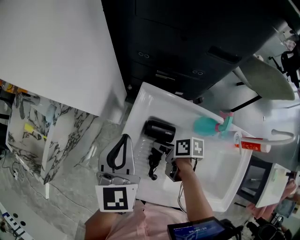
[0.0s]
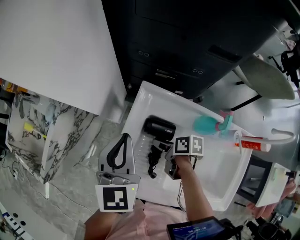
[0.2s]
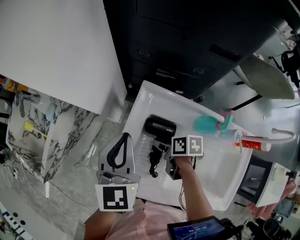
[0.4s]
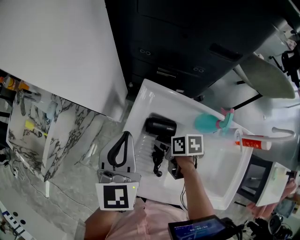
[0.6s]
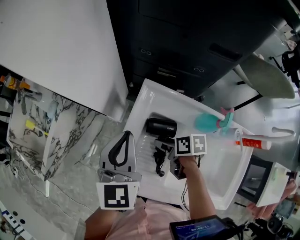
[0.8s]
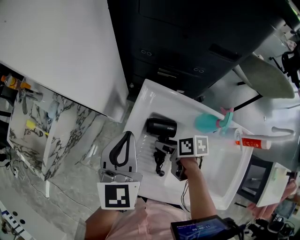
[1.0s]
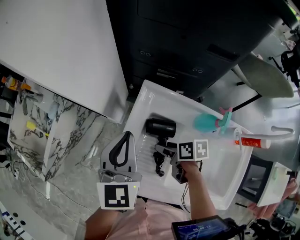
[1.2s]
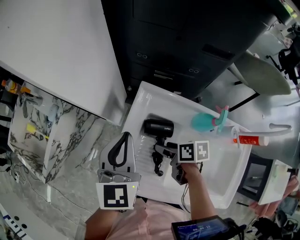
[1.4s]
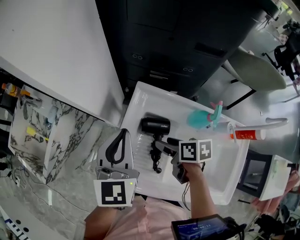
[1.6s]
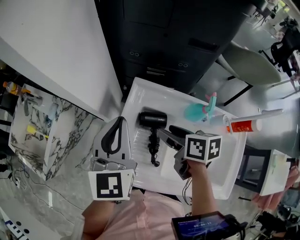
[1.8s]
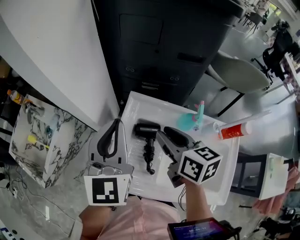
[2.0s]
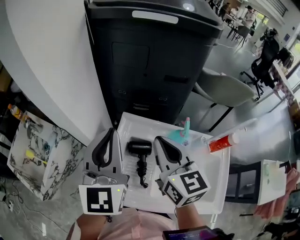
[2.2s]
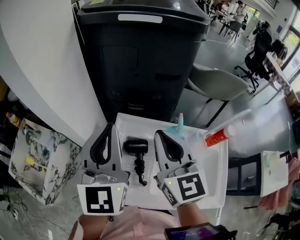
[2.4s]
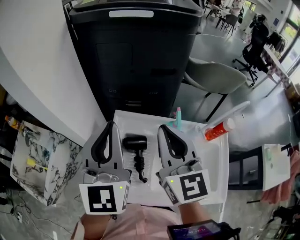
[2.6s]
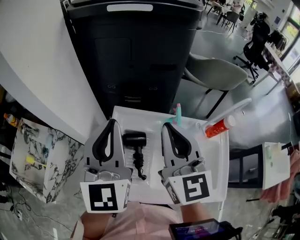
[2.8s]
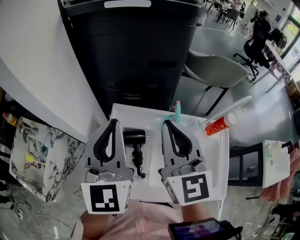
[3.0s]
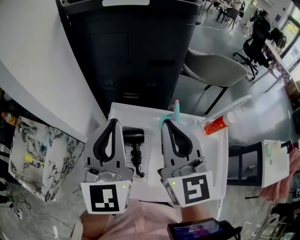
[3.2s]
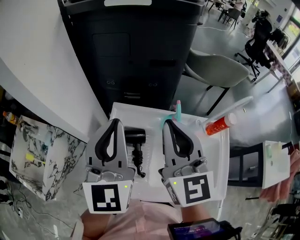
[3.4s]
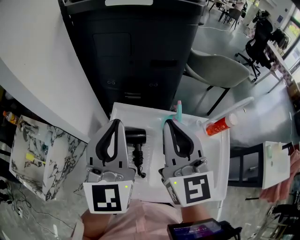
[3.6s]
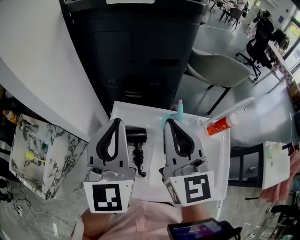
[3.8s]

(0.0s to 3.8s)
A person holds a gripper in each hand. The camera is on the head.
0.0s - 1.2s: The grippers make only small movements.
1.2s - 2.6s: The right gripper goes roughly 35 cm upward, tilts its fingers about 50 degrees upward, and closes. The left gripper travels upward by about 20 cm, and rotates approximately 30 degrees.
2.6s - 3.8s: The grippers move only a little.

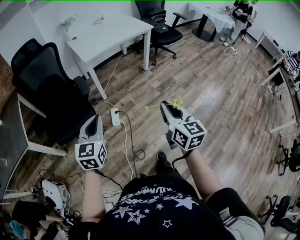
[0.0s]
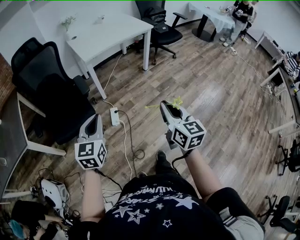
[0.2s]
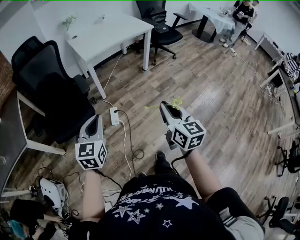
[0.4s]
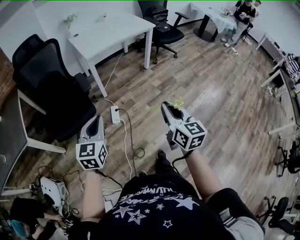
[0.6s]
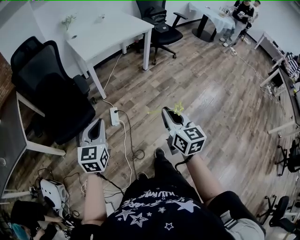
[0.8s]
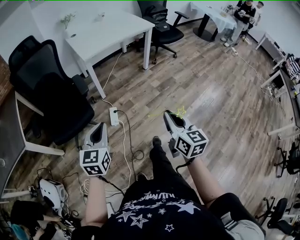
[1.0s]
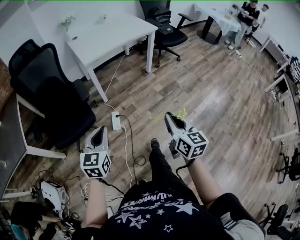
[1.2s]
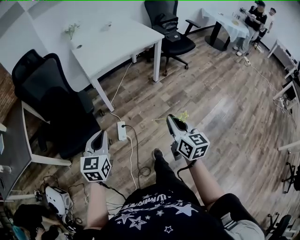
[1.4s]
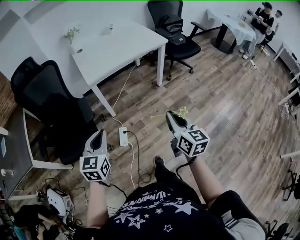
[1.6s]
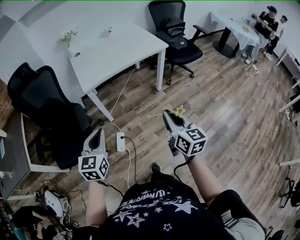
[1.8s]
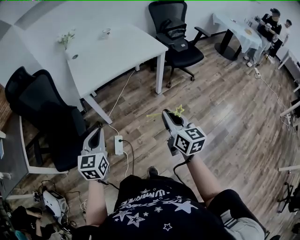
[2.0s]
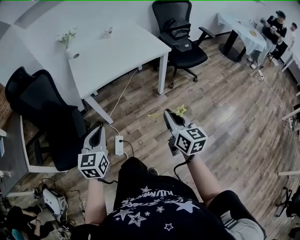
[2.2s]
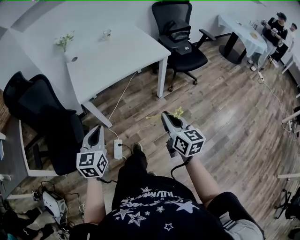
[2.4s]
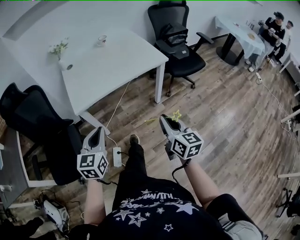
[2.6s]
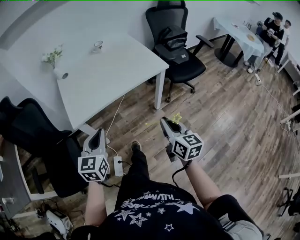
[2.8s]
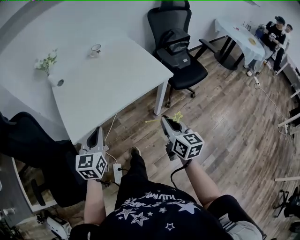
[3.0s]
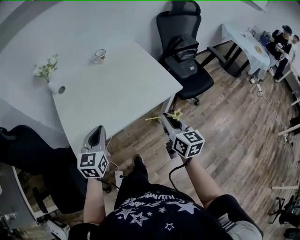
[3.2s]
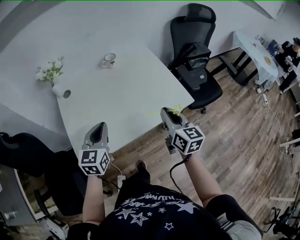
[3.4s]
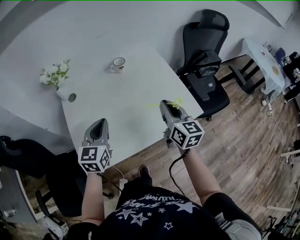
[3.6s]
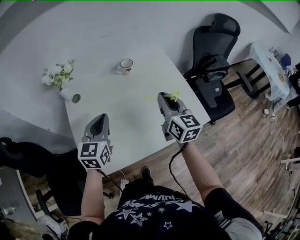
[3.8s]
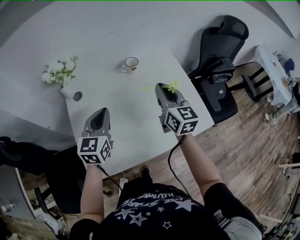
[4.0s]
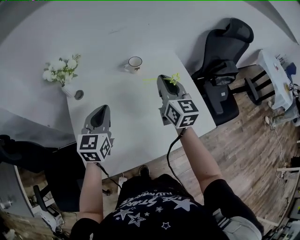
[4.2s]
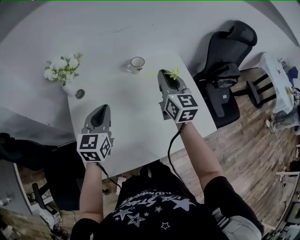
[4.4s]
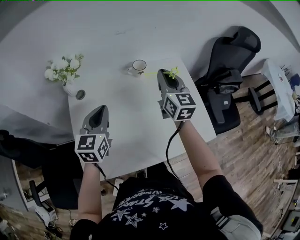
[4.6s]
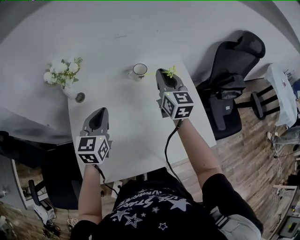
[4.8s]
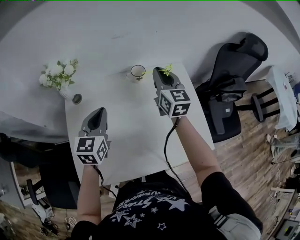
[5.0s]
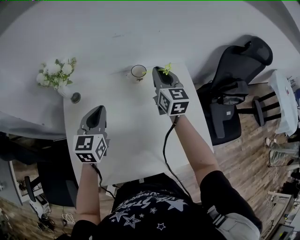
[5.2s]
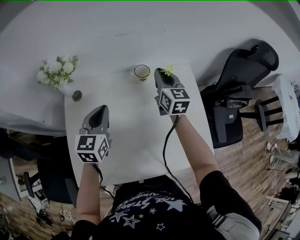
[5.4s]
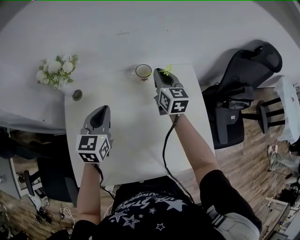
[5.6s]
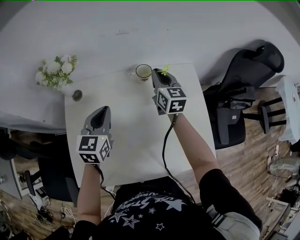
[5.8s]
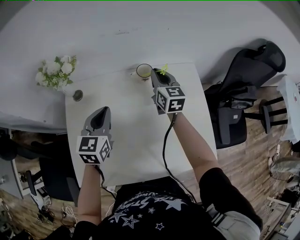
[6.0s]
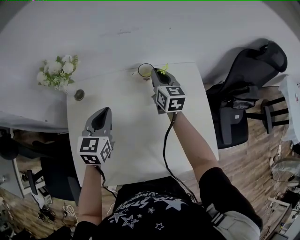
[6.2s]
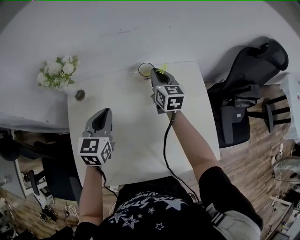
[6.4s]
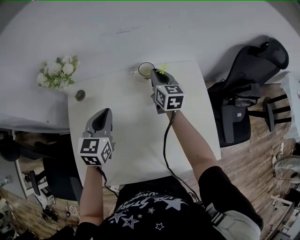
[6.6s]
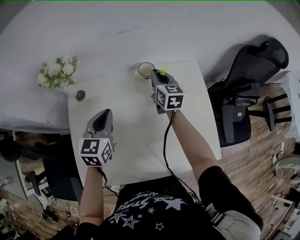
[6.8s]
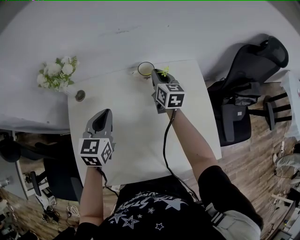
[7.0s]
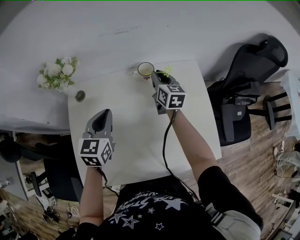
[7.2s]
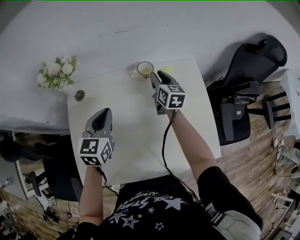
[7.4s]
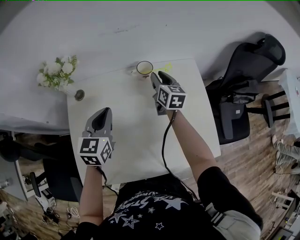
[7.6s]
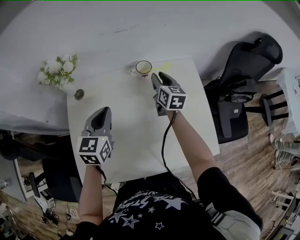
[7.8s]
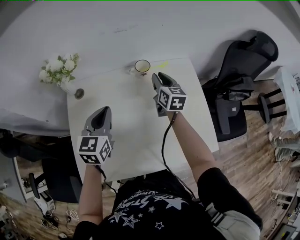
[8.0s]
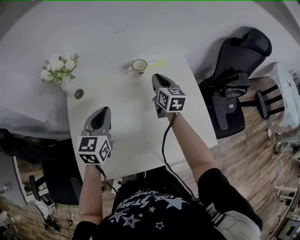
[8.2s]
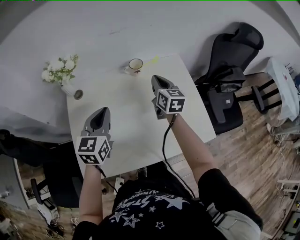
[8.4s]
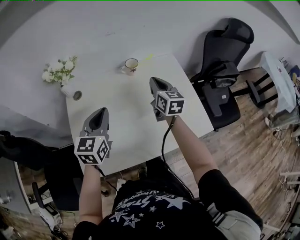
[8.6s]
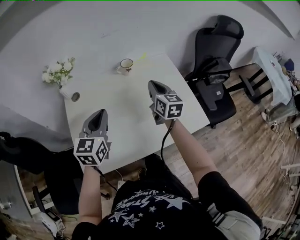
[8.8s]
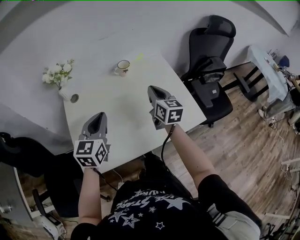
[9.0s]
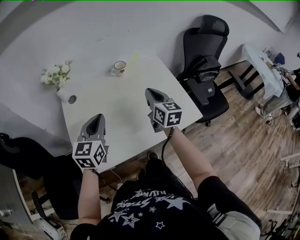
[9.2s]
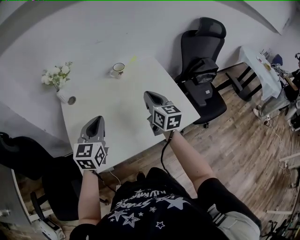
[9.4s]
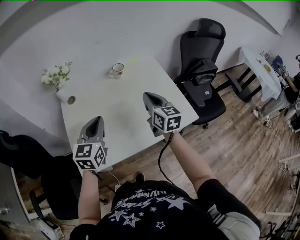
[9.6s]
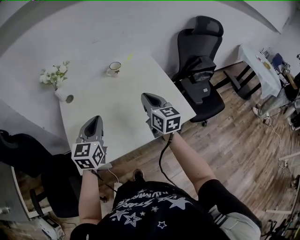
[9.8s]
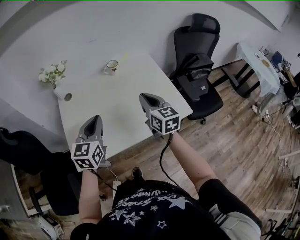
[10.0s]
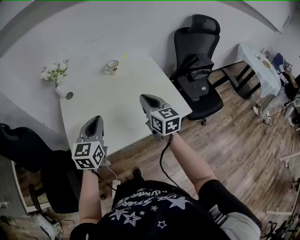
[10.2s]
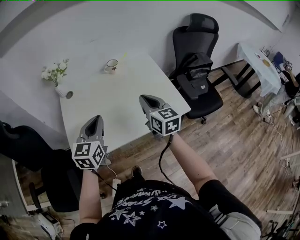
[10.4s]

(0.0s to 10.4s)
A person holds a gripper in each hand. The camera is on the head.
0.0s - 1.4s: The right gripper travels forward, to the right and downward by approximately 15 cm. Meanwhile the left gripper moves forward, roughly 10 cm.
1.4s - 3.0s: The pair of grippers is taken forward, about 50 cm.
3.0s - 4.4s: The two grippers go some 50 cm forward. The right gripper turns by roughly 20 degrees.
4.4s - 6.0s: The right gripper is displaced forward and downward by approximately 20 cm, while the left gripper goes roughly 10 cm forward.
6.0s - 7.4s: The right gripper opens up.
7.4s - 9.0s: The right gripper heads backward, covering roughly 25 cm, and closes its fingers, while the left gripper is displaced backward by approximately 15 cm.
9.0s - 10.4s: Both grippers travel together backward, roughly 10 cm.

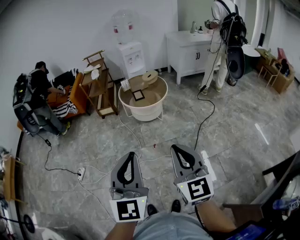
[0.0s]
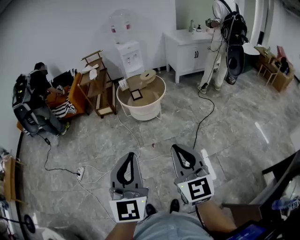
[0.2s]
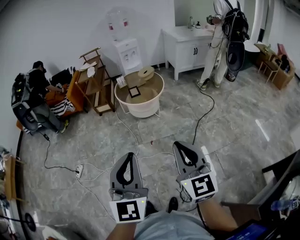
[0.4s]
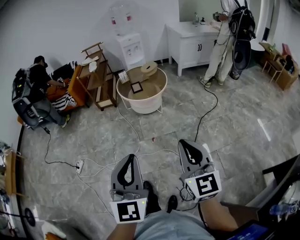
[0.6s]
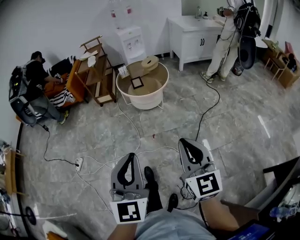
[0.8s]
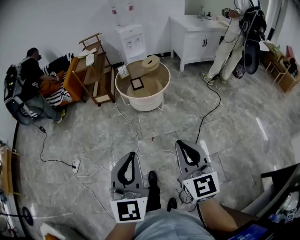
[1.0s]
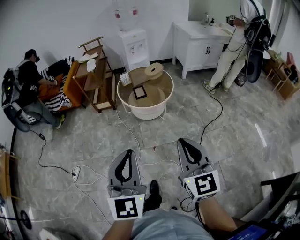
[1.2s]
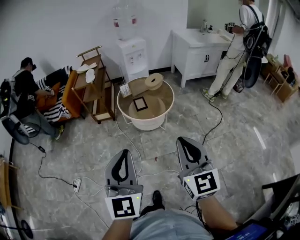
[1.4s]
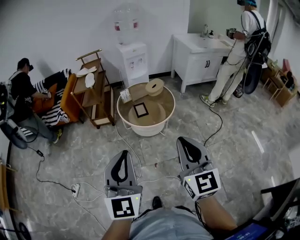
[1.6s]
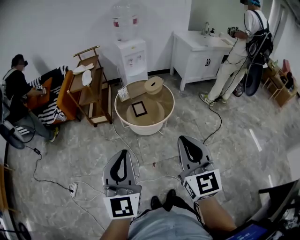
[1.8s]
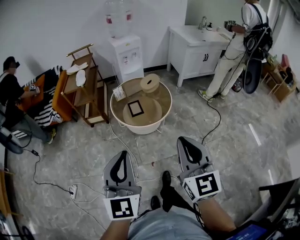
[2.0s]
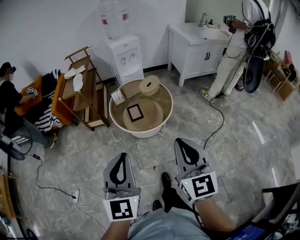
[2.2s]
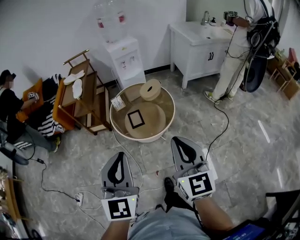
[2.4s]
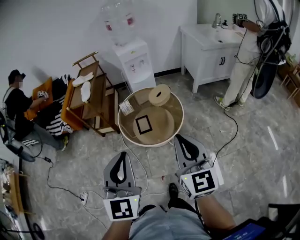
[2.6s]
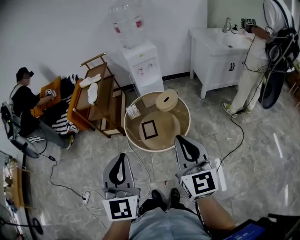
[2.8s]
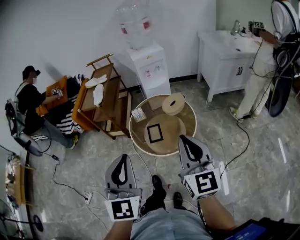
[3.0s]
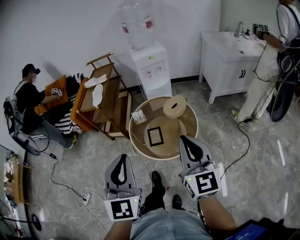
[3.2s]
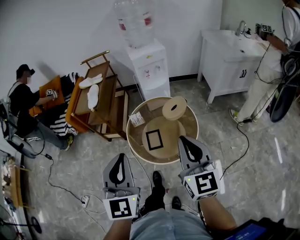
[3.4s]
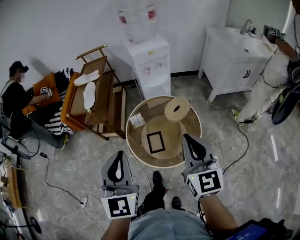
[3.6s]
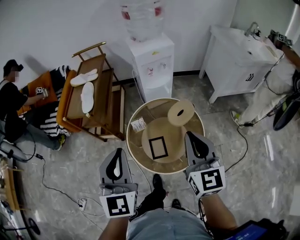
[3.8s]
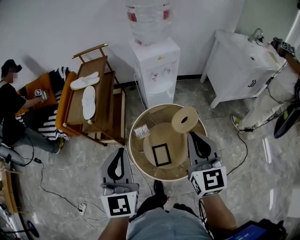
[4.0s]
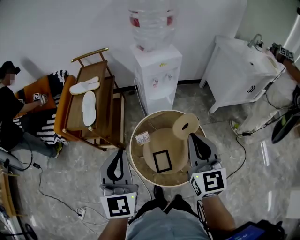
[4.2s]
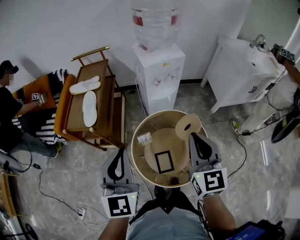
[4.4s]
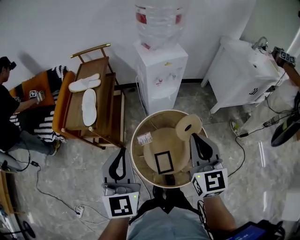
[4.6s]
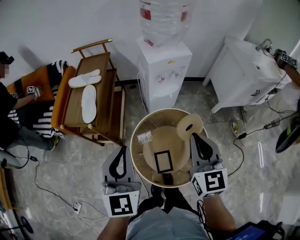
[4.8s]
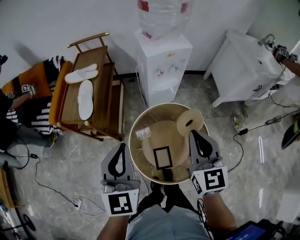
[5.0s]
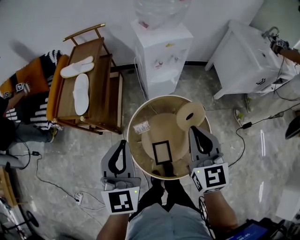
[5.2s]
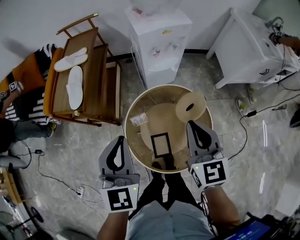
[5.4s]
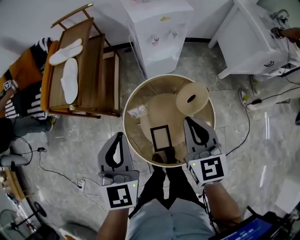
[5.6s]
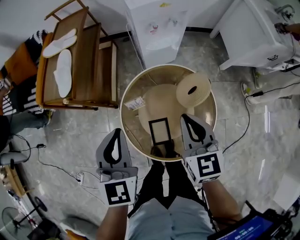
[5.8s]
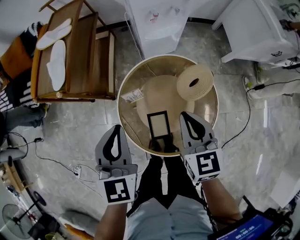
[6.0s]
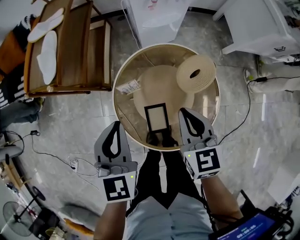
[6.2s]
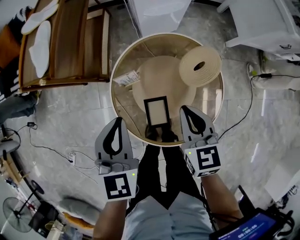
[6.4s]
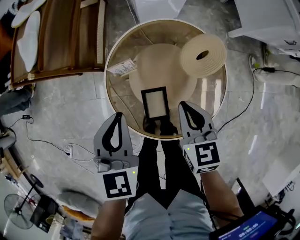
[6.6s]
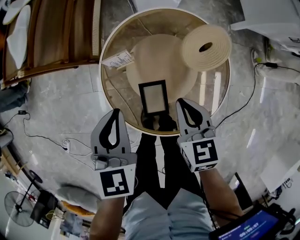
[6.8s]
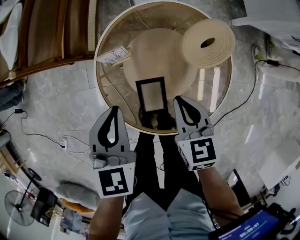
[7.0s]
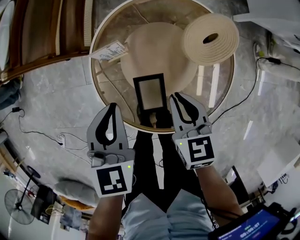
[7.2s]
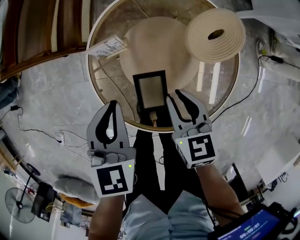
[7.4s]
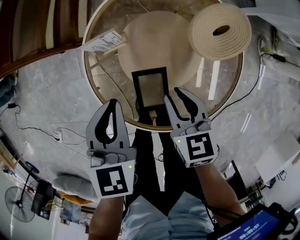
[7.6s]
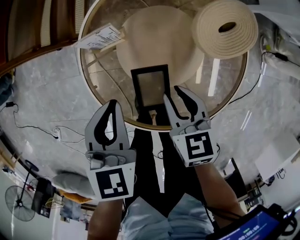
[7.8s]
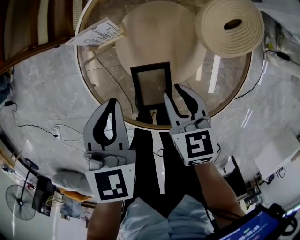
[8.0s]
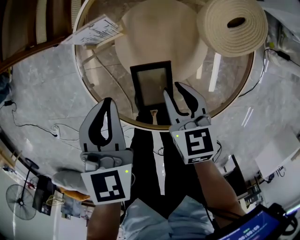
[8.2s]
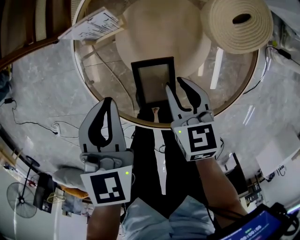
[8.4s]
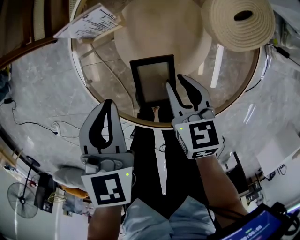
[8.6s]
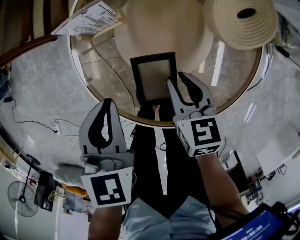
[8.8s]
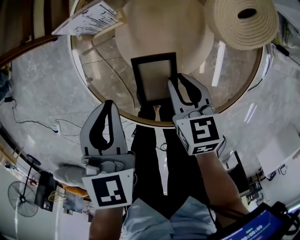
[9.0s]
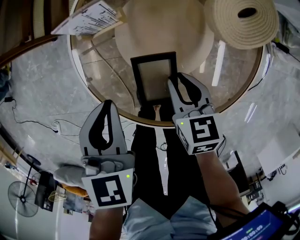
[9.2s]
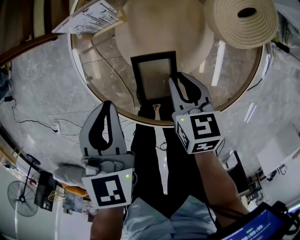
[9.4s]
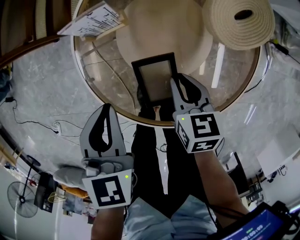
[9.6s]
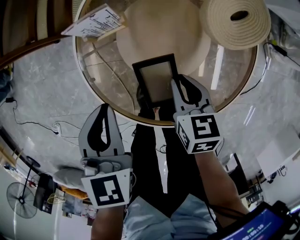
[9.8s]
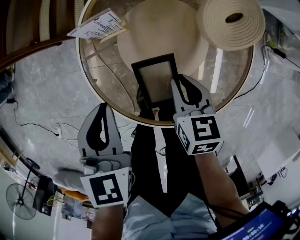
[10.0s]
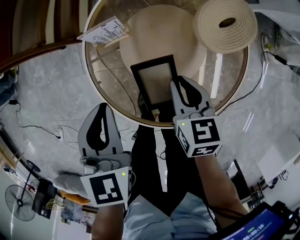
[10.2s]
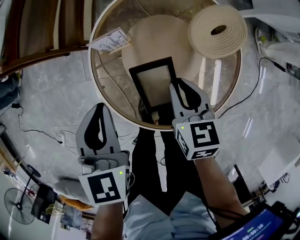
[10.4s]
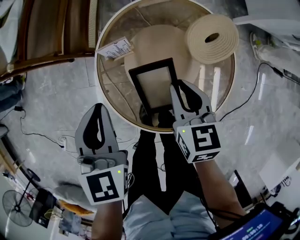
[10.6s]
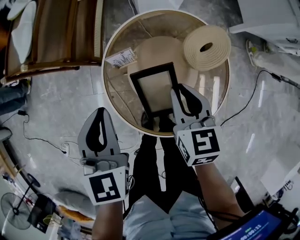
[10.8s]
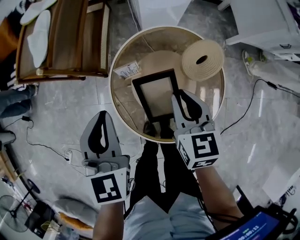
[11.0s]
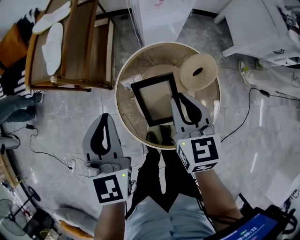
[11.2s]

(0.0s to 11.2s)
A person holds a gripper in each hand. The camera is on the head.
0.0s - 1.6s: Both grippers travel together forward, roughly 35 cm.
1.6s - 3.2s: The grippers both shift forward by about 40 cm.
3.2s - 4.8s: Both grippers move forward, about 35 cm.
4.8s - 6.4s: The grippers both shift downward by roughly 30 cm. The right gripper turns by about 30 degrees. The left gripper rotates approximately 30 degrees.
6.4s - 8.0s: The grippers both shift downward by roughly 20 cm. The right gripper opens up.
8.0s - 9.6s: The grippers stay close to where they were, moving slightly.
9.6s - 11.2s: The grippers both shift upward by about 30 cm. The left gripper rotates approximately 30 degrees, while the right gripper rotates some 30 degrees.
